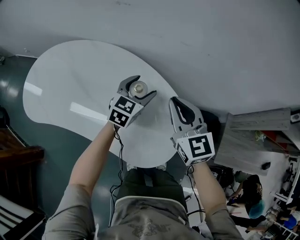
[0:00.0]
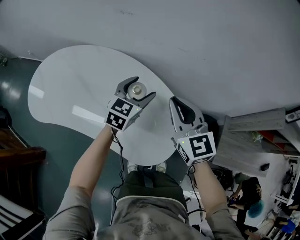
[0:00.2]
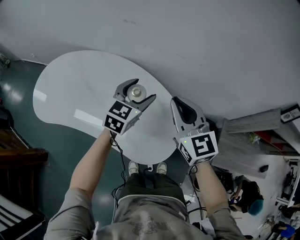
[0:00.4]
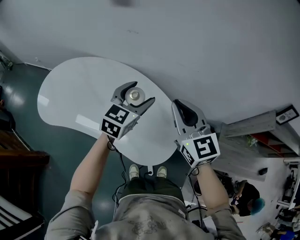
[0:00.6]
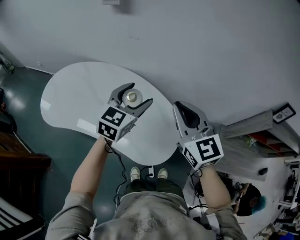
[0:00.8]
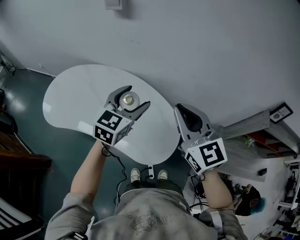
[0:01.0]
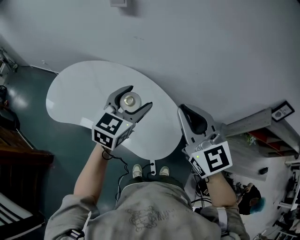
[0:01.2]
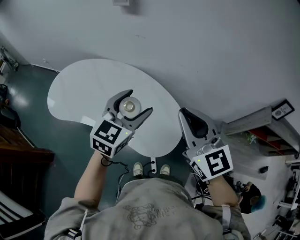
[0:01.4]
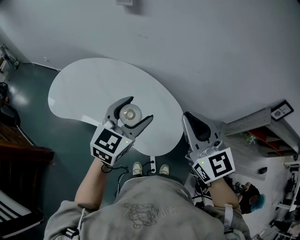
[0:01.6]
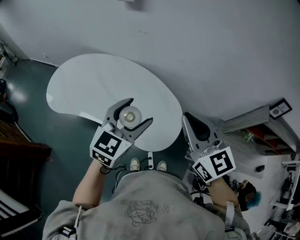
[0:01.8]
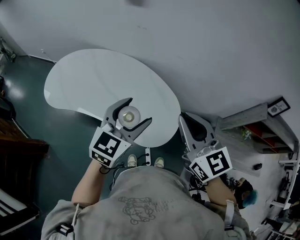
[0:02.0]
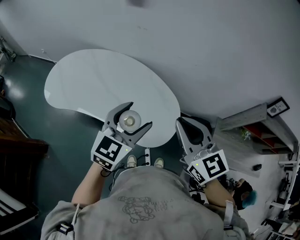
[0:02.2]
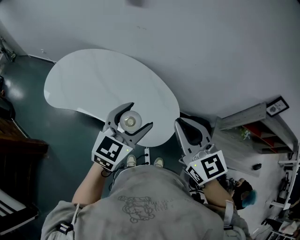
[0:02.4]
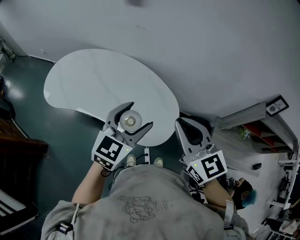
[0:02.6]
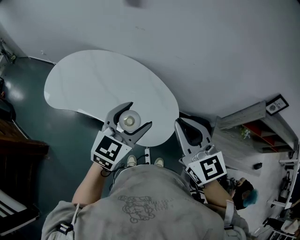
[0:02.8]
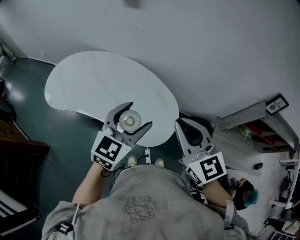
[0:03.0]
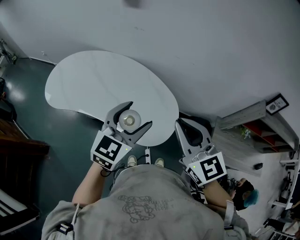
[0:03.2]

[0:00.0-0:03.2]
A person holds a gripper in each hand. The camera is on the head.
0:00.0 to 0:01.6: Both grippers move upward and backward, some 30 cm.
0:01.6 to 0:03.2: Both grippers move backward, about 5 cm.

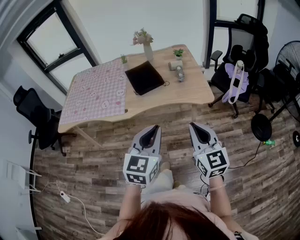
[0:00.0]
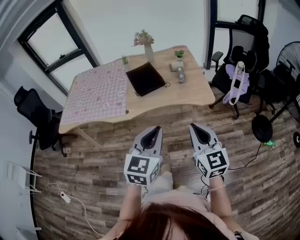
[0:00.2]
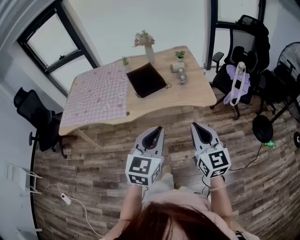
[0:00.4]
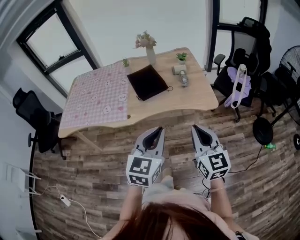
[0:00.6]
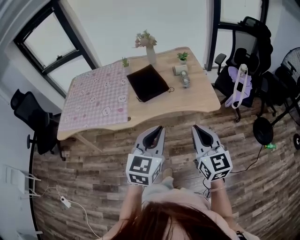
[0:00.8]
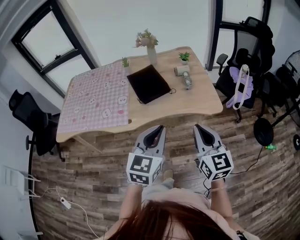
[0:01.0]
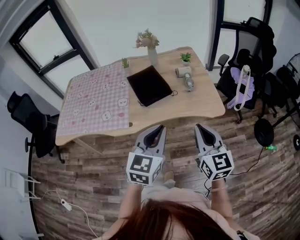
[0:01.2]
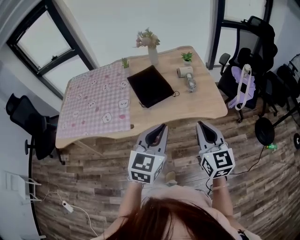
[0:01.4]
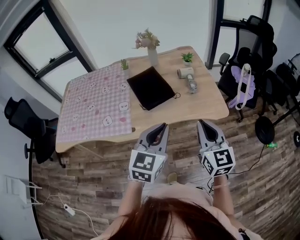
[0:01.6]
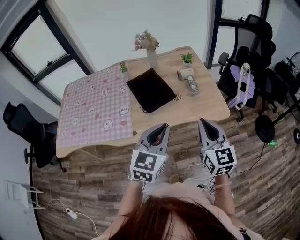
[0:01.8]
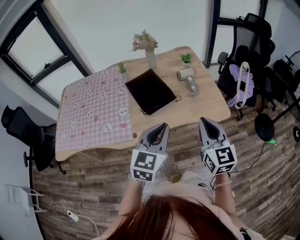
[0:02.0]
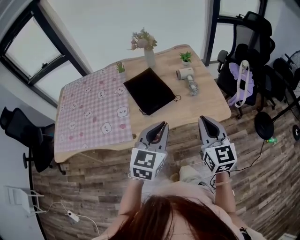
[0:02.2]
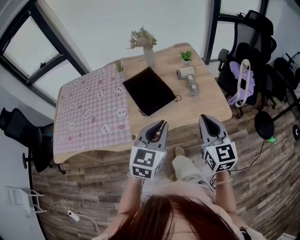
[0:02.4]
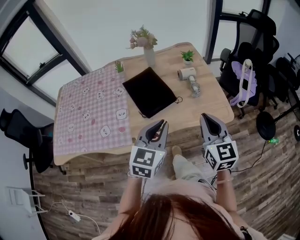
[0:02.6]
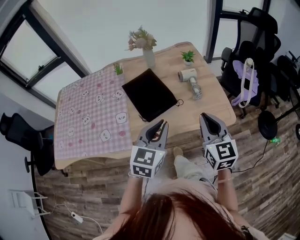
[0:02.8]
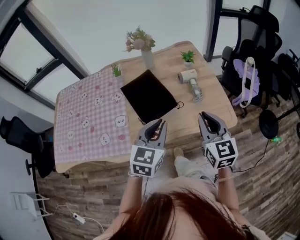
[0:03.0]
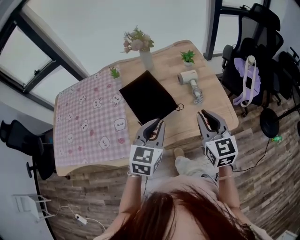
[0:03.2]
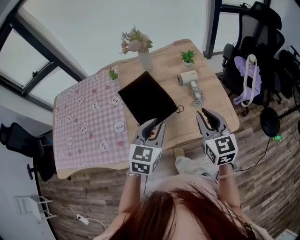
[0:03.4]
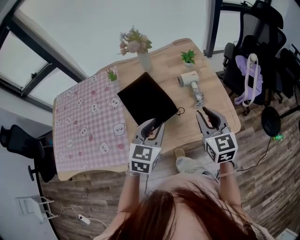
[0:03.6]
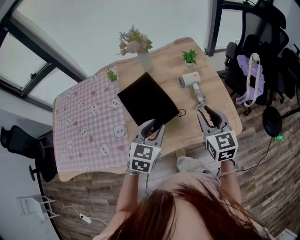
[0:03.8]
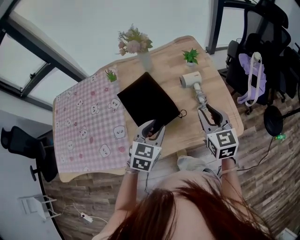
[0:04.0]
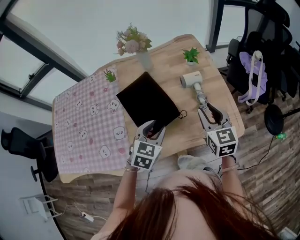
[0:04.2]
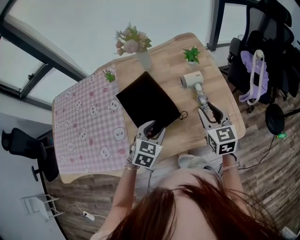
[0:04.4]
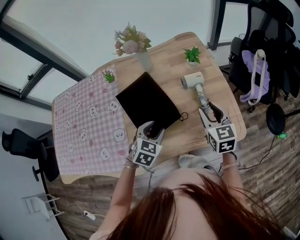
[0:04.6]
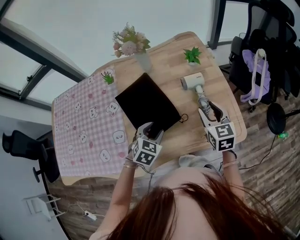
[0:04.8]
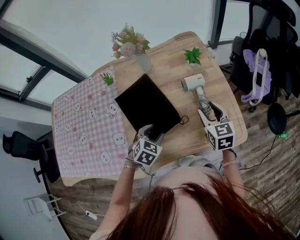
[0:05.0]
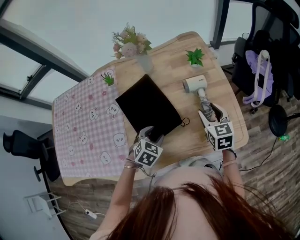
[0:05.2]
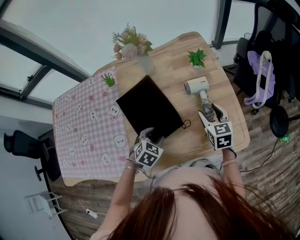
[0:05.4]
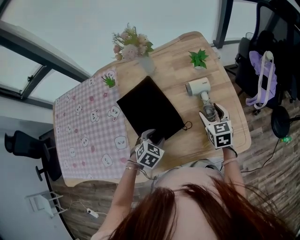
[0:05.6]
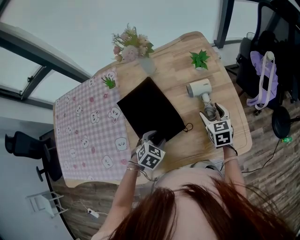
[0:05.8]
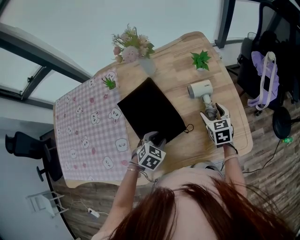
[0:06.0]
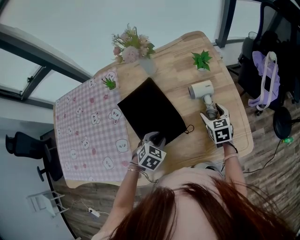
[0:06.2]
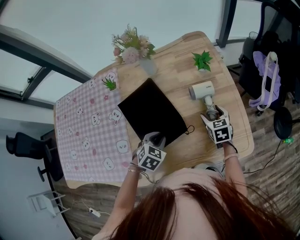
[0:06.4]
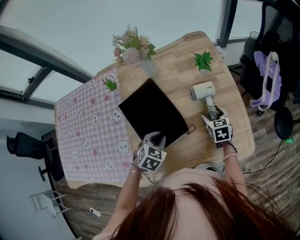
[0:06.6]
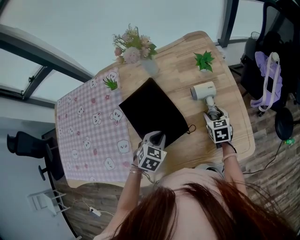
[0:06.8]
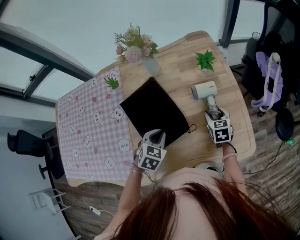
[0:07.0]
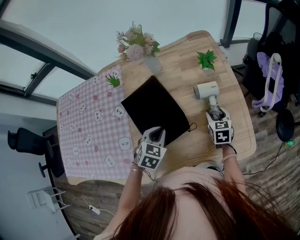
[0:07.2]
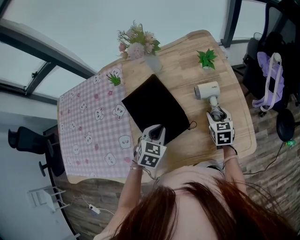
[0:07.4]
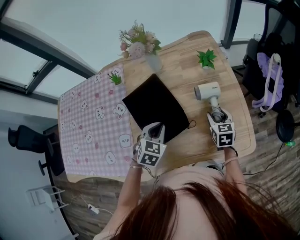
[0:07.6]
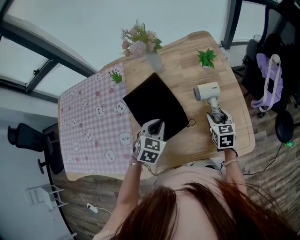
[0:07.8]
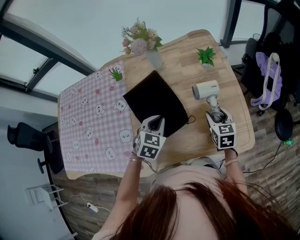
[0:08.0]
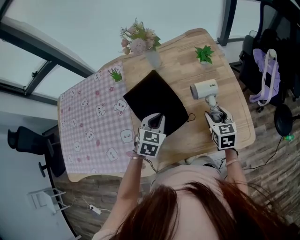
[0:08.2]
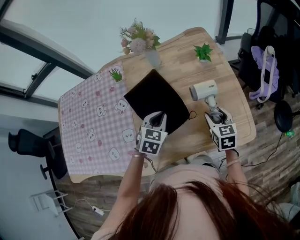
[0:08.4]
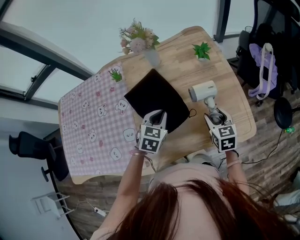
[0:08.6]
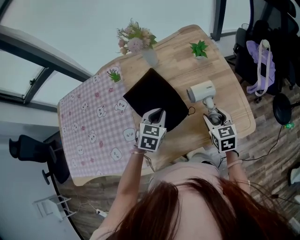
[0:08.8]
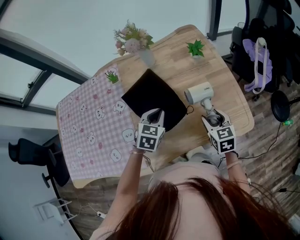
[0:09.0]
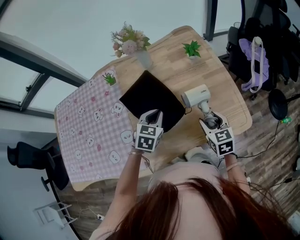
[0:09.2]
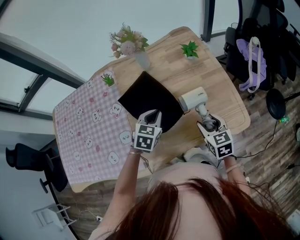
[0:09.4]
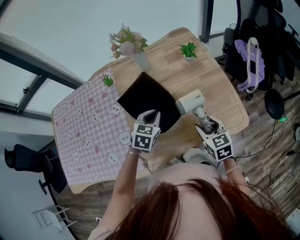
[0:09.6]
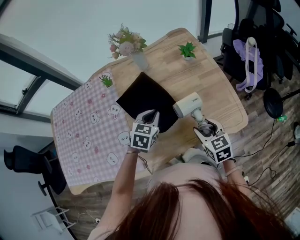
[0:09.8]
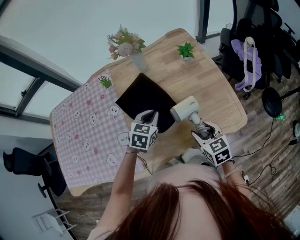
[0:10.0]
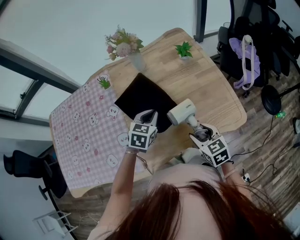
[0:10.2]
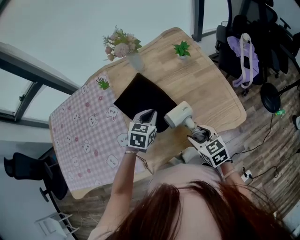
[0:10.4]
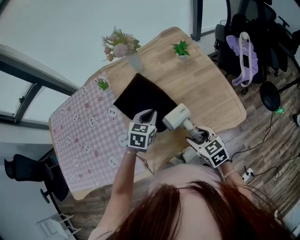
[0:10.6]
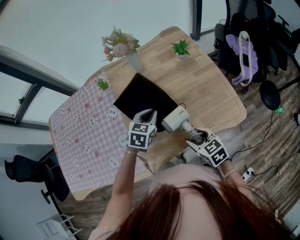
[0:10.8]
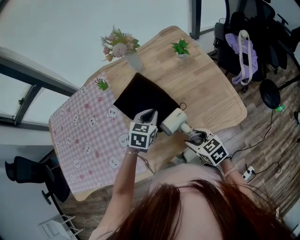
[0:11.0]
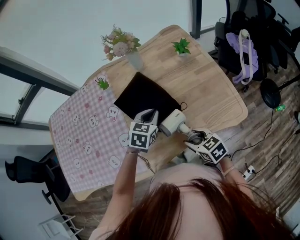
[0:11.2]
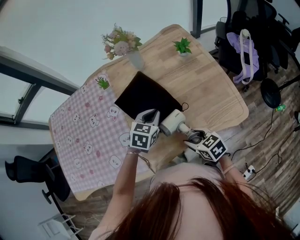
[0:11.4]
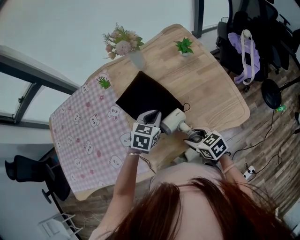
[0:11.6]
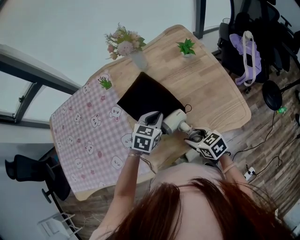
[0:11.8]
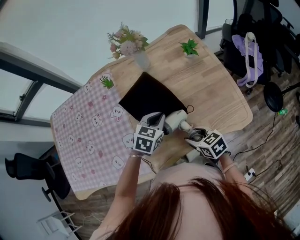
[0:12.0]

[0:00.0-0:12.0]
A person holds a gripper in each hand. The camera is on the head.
0:00.0 to 0:01.6: The right gripper shifts roughly 15 cm forward. Meanwhile the left gripper goes roughly 20 cm forward and to the left.
0:01.6 to 0:03.0: The grippers both shift forward by some 15 cm.
0:03.0 to 0:04.4: The right gripper goes some 20 cm forward and downward, and opens; the left gripper goes approximately 20 cm downward and forward, changes its angle by approximately 20 degrees, and opens.
0:04.4 to 0:06.0: The left gripper shifts approximately 10 cm downward, while the right gripper shifts some 20 cm downward and forward, and opens.
0:06.0 to 0:07.6: The left gripper is displaced upward by approximately 5 cm, and closes its fingers.
0:07.6 to 0:09.0: The right gripper goes roughly 10 cm backward and upward.
0:09.0 to 0:10.4: The right gripper heads backward and to the left, covering some 10 cm.
0:10.4 to 0:12.0: The right gripper heads to the left, covering approximately 5 cm.

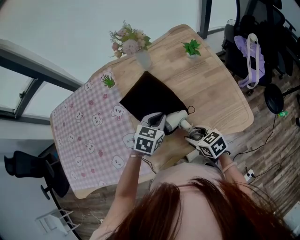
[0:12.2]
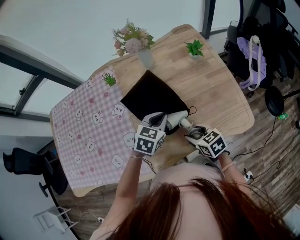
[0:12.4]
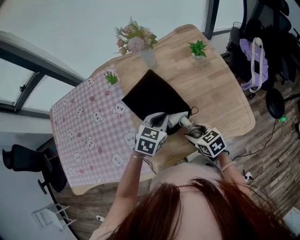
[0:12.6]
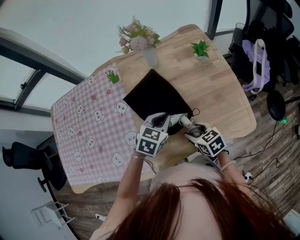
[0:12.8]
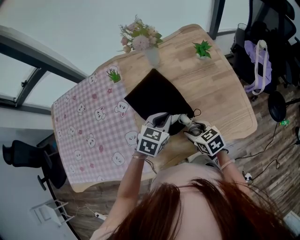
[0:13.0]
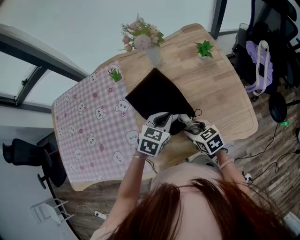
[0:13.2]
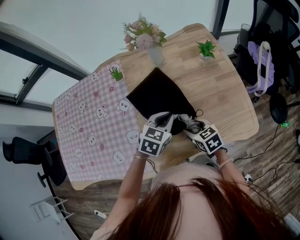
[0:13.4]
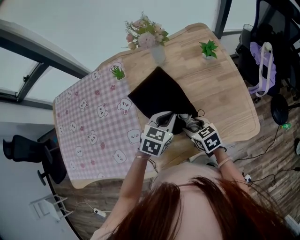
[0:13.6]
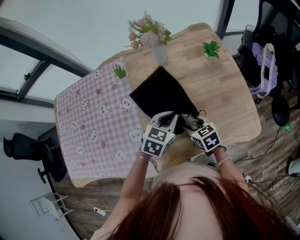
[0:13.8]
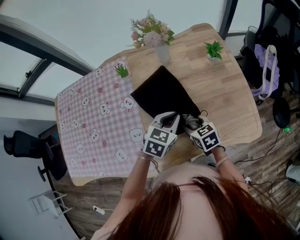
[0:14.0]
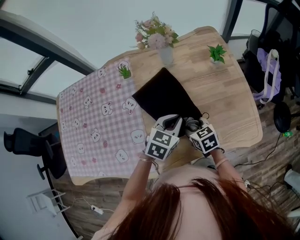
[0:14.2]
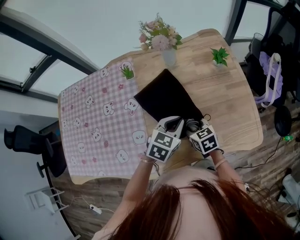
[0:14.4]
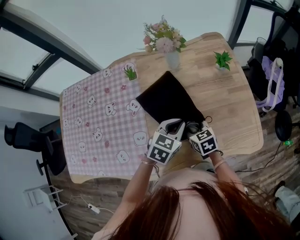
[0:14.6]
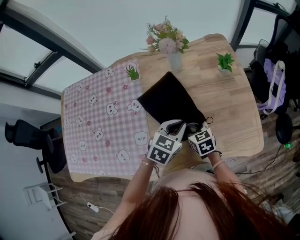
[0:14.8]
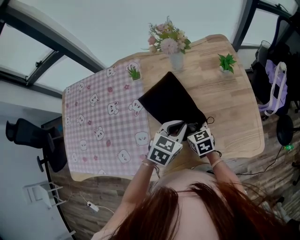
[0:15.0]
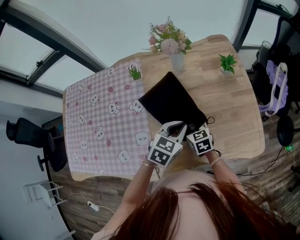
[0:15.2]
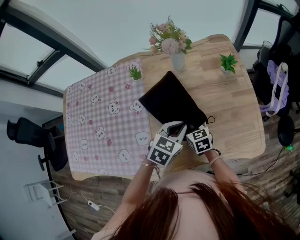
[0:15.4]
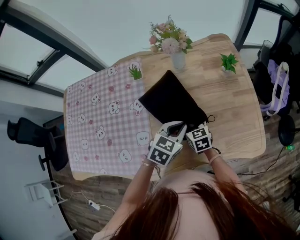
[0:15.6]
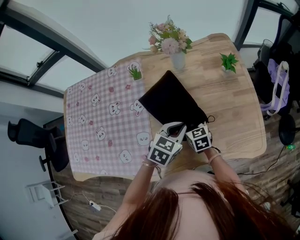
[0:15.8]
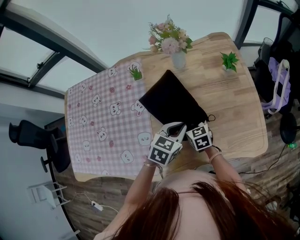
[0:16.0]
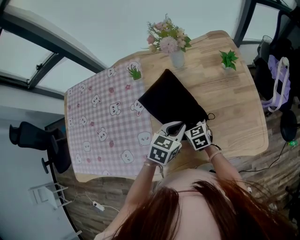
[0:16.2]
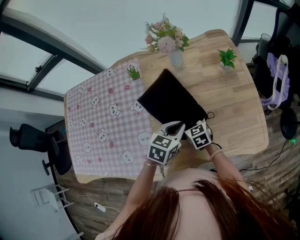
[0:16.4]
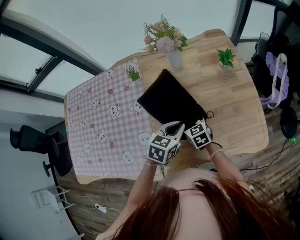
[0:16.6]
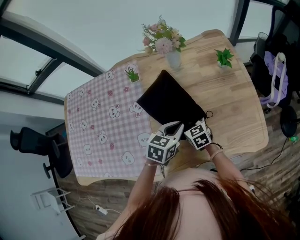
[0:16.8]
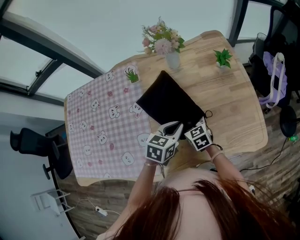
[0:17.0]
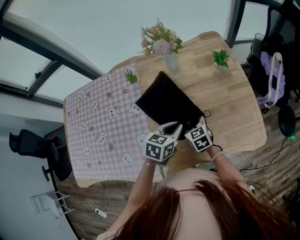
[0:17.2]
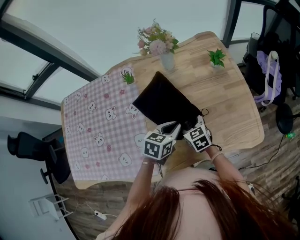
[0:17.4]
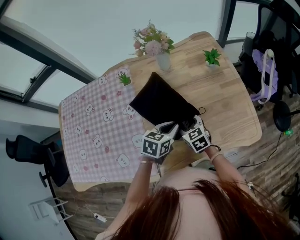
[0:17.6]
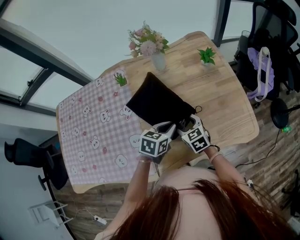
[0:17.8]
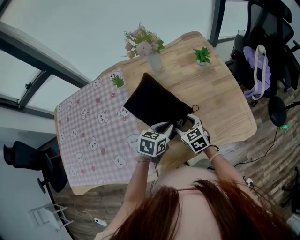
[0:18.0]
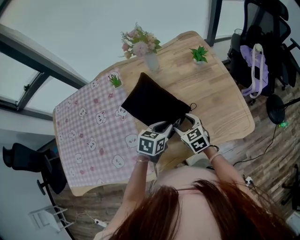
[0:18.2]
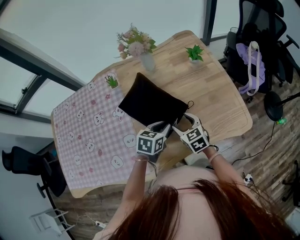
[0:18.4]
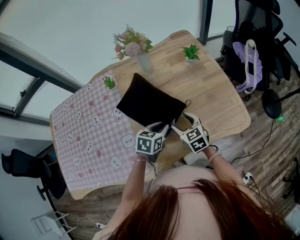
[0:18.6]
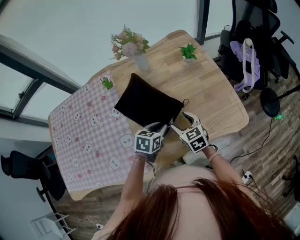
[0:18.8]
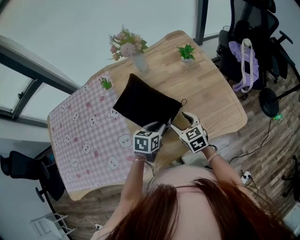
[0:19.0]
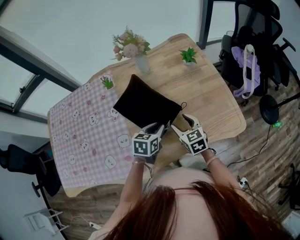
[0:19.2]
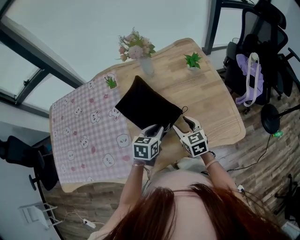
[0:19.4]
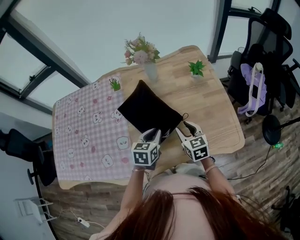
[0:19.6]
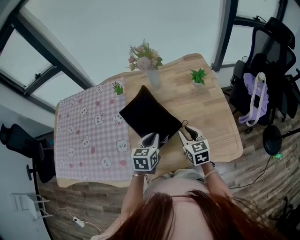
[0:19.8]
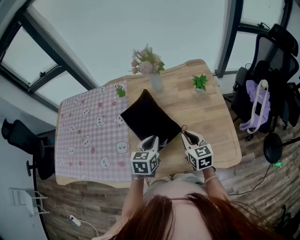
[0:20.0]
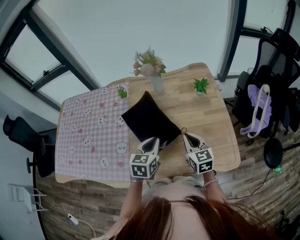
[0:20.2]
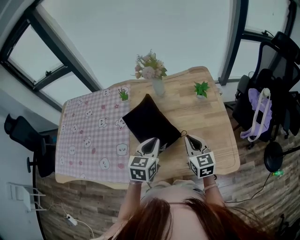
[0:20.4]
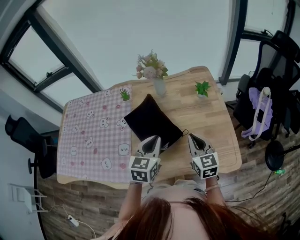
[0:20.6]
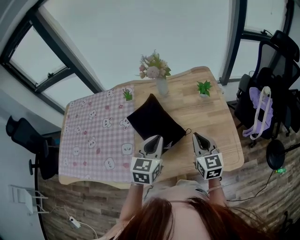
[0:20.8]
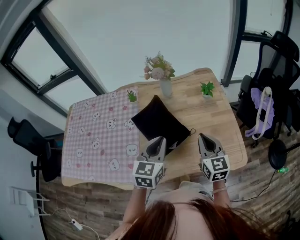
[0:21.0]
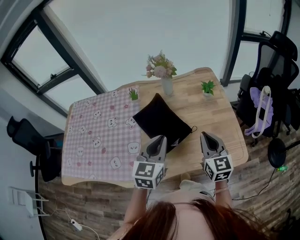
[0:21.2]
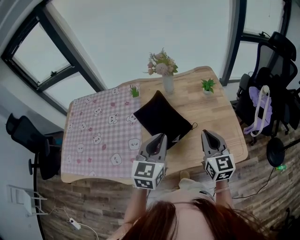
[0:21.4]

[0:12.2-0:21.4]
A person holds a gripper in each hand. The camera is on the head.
0:12.2 to 0:13.8: The right gripper is displaced forward by roughly 10 cm.
0:13.8 to 0:15.2: The right gripper moves forward, about 5 cm.
0:15.2 to 0:16.8: The grippers make only small movements.
0:16.8 to 0:18.4: The left gripper moves some 5 cm. Meanwhile the right gripper is displaced to the right and backward by some 10 cm.
0:18.4 to 0:19.8: The right gripper travels to the right and upward by about 10 cm, and closes its fingers, while the left gripper rotates some 30 degrees.
0:19.8 to 0:21.4: Both grippers move upward and backward, approximately 20 cm. The left gripper swivels roughly 20 degrees, while the right gripper swivels about 20 degrees, and closes up.
